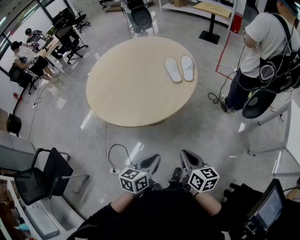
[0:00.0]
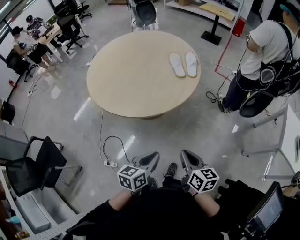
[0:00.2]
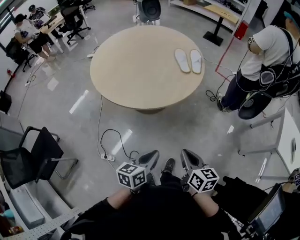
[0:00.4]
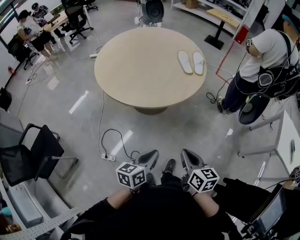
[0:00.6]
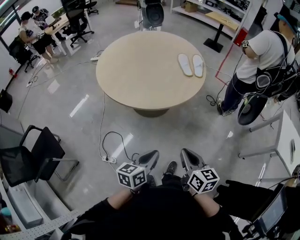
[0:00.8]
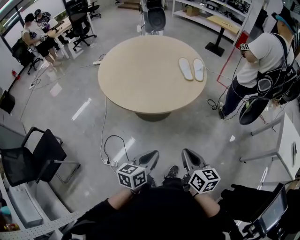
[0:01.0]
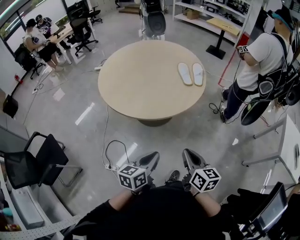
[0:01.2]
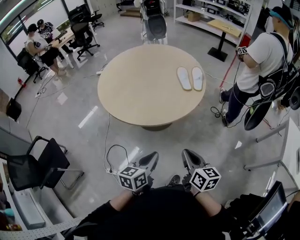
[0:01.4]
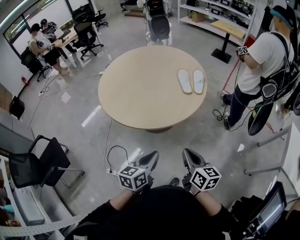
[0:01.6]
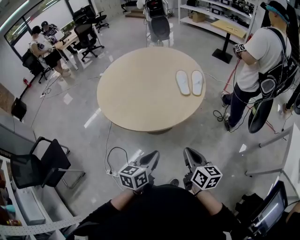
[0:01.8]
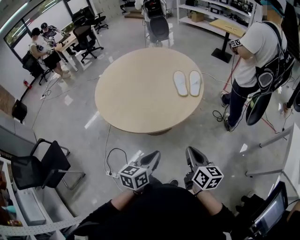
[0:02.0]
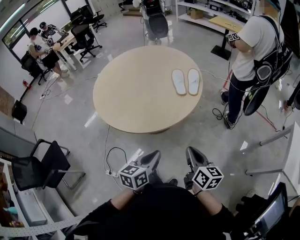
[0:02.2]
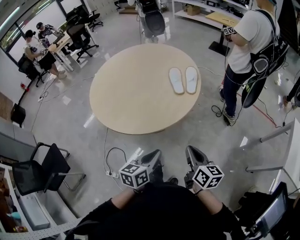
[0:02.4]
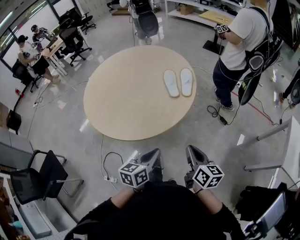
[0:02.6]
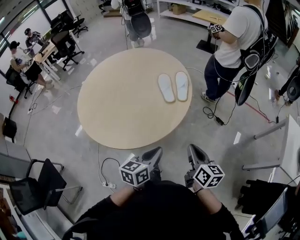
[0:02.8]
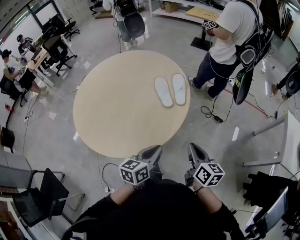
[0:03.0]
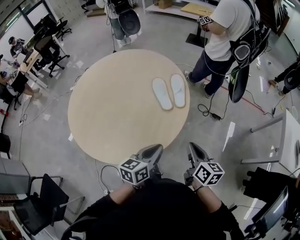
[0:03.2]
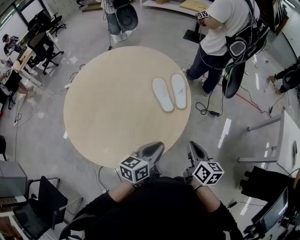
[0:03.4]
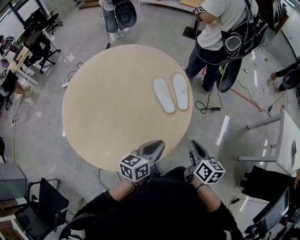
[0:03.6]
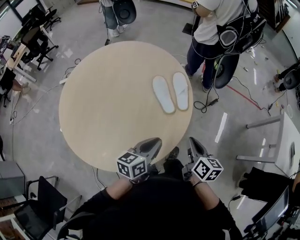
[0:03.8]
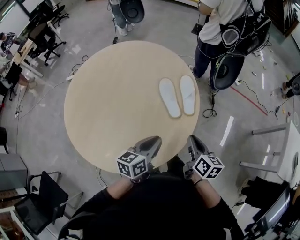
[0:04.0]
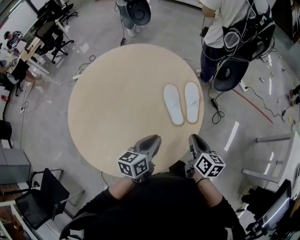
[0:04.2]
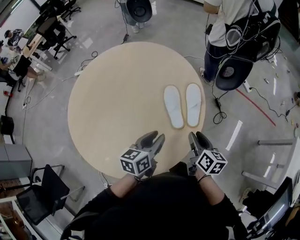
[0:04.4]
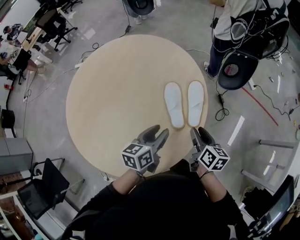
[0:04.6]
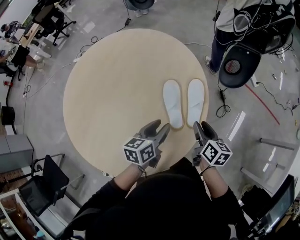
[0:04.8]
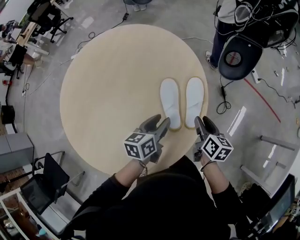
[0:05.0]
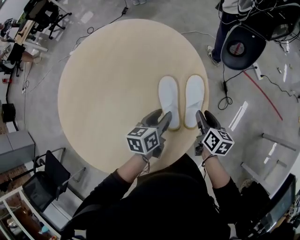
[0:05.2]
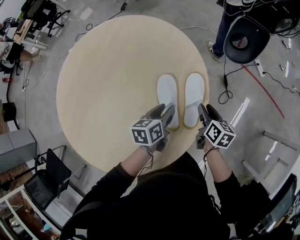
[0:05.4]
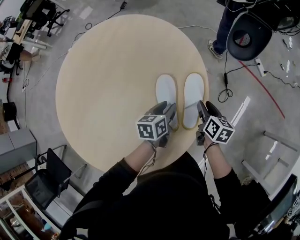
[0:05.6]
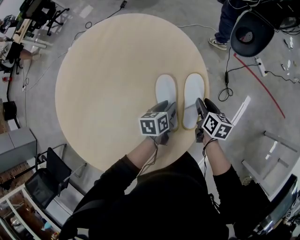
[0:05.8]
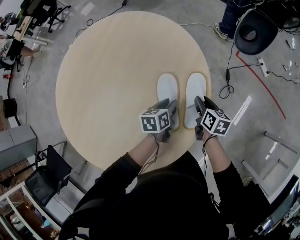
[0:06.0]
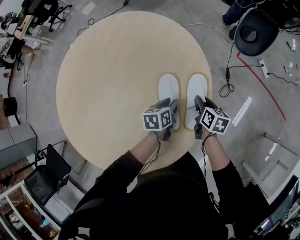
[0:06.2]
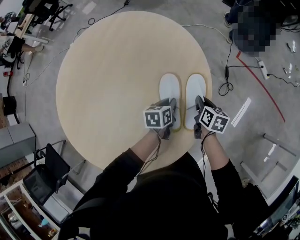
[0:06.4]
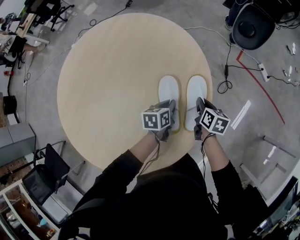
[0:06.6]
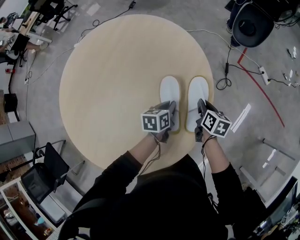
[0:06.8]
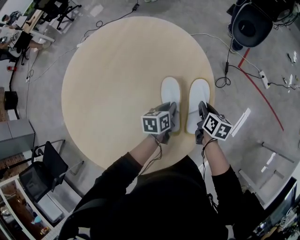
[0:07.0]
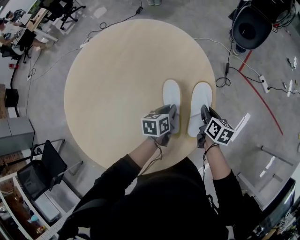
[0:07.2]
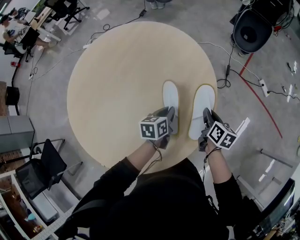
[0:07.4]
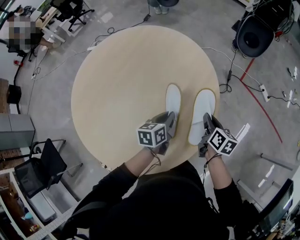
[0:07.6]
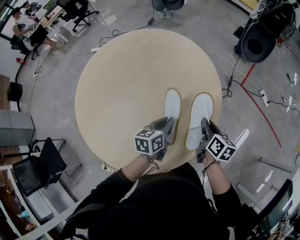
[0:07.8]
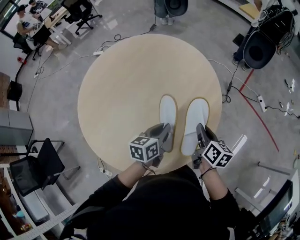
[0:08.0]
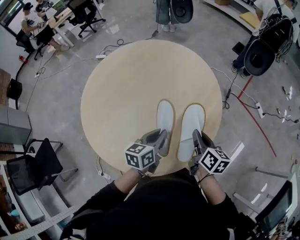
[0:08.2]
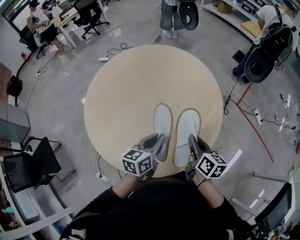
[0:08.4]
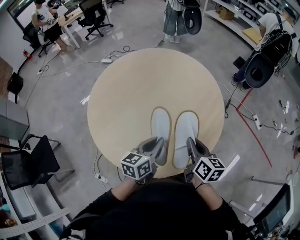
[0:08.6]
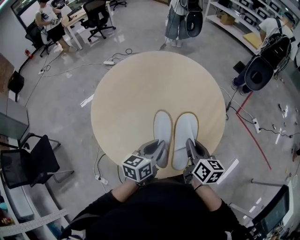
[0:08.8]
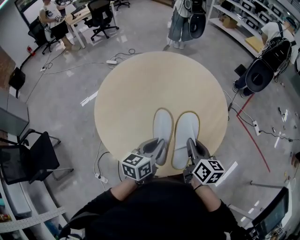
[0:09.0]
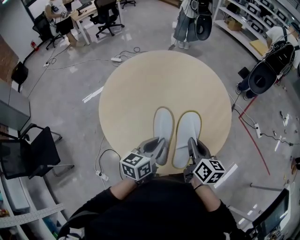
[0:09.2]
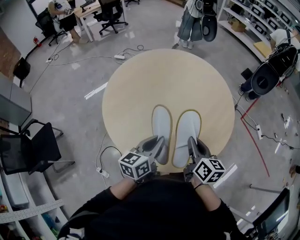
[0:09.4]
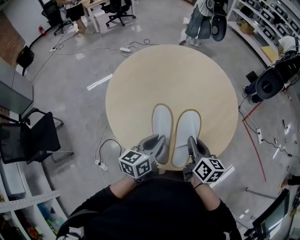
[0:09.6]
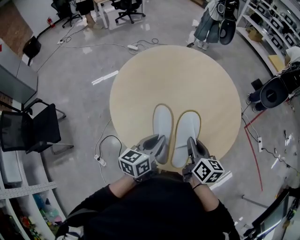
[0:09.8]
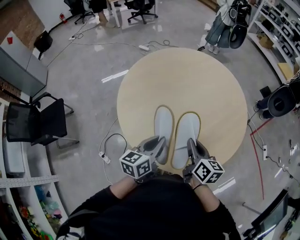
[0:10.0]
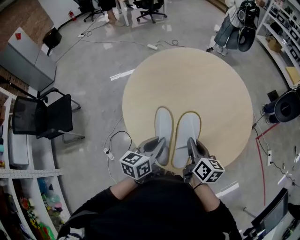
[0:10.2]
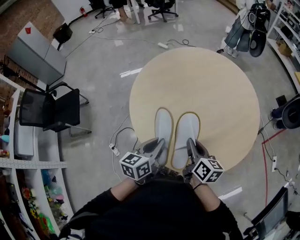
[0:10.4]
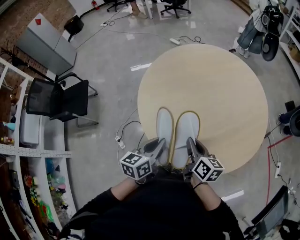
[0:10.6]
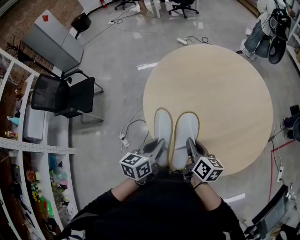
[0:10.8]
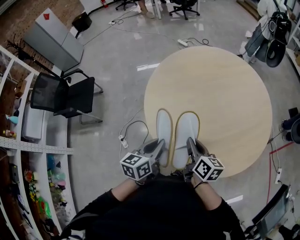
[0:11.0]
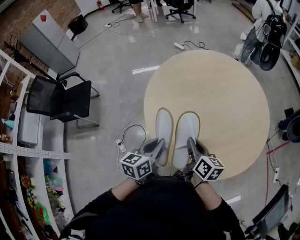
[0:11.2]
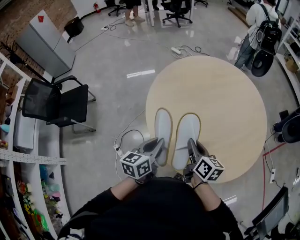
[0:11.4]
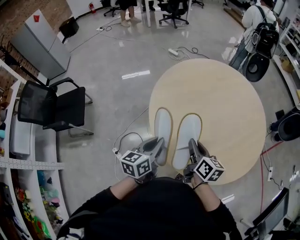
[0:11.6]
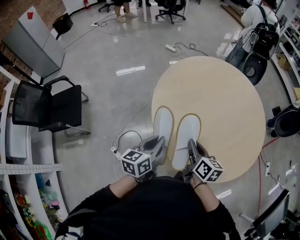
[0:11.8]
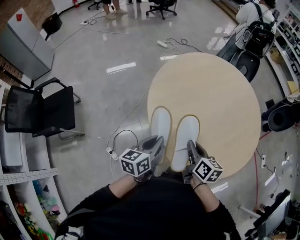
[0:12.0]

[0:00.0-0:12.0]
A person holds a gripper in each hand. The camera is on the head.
0:00.0 to 0:01.6: The right gripper goes backward and returns, approximately 10 cm each way. The left gripper is displaced to the left by approximately 5 cm.
0:01.6 to 0:03.0: The two grippers go some 25 cm forward.
0:03.0 to 0:04.4: Both grippers move forward, approximately 25 cm. The left gripper opens up; the right gripper opens.
0:04.4 to 0:06.0: Both grippers travel together forward and downward, about 30 cm. The left gripper rotates about 20 degrees.
0:06.0 to 0:07.6: The left gripper travels upward, backward and to the left by approximately 15 cm, and closes. The right gripper is displaced upward and backward by roughly 15 cm, and closes.
0:07.6 to 0:09.0: The left gripper heads backward, to the left and upward, covering some 30 cm. Meanwhile the right gripper is displaced to the left, backward and upward by approximately 35 cm, and changes its angle by roughly 20 degrees.
0:09.0 to 0:10.4: The right gripper moves some 10 cm, and swivels some 20 degrees. The left gripper shifts by some 10 cm, and turns by some 30 degrees.
0:10.4 to 0:12.0: The grippers both shift to the left by roughly 20 cm.

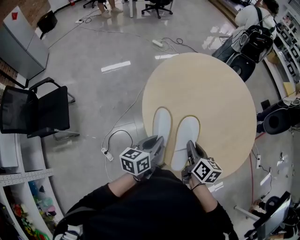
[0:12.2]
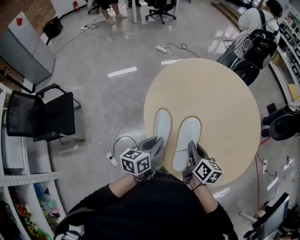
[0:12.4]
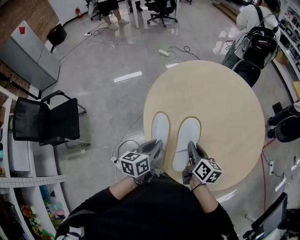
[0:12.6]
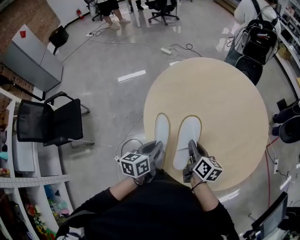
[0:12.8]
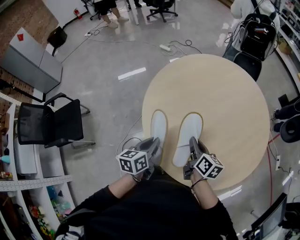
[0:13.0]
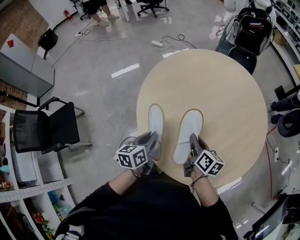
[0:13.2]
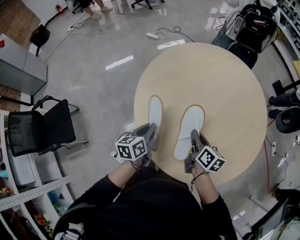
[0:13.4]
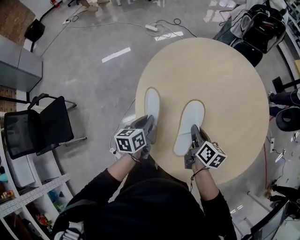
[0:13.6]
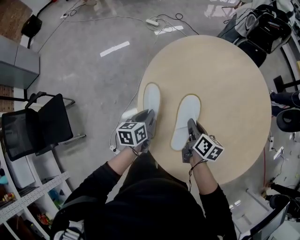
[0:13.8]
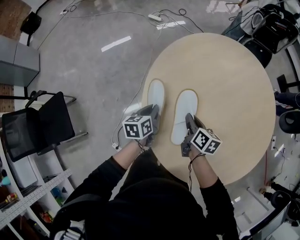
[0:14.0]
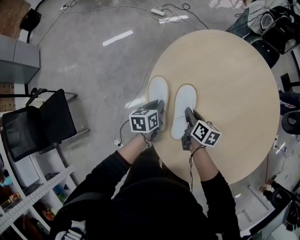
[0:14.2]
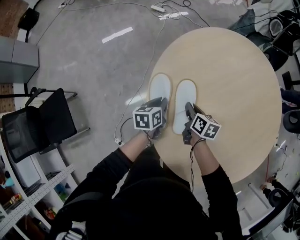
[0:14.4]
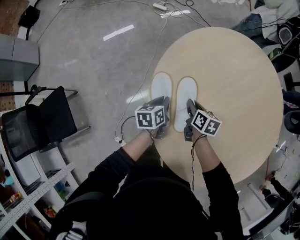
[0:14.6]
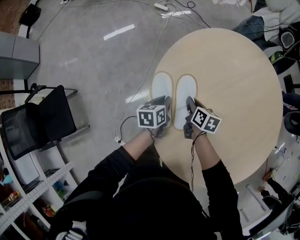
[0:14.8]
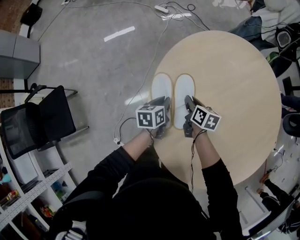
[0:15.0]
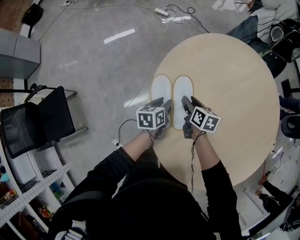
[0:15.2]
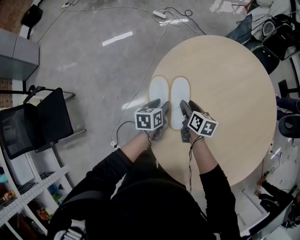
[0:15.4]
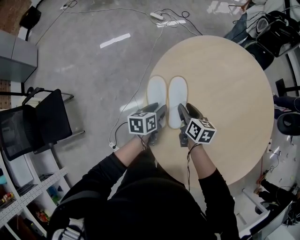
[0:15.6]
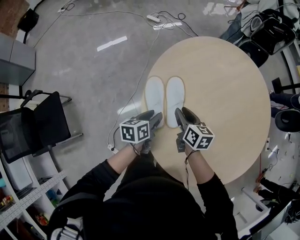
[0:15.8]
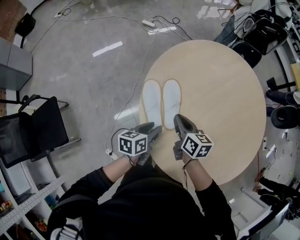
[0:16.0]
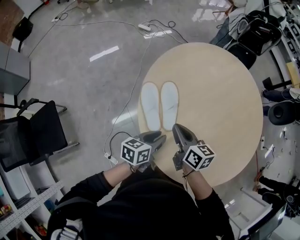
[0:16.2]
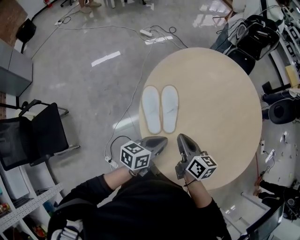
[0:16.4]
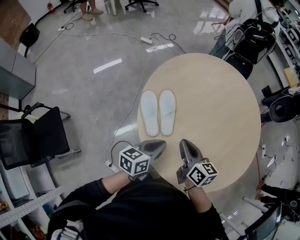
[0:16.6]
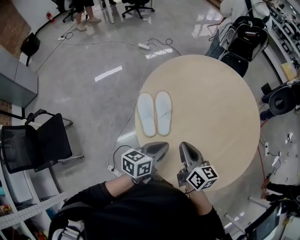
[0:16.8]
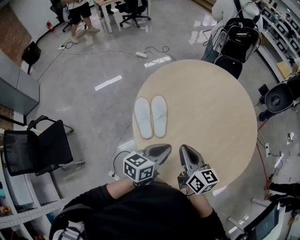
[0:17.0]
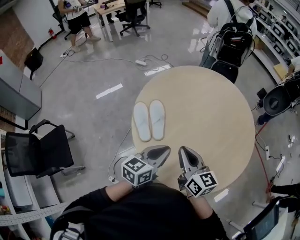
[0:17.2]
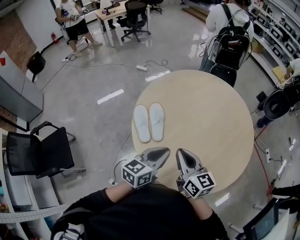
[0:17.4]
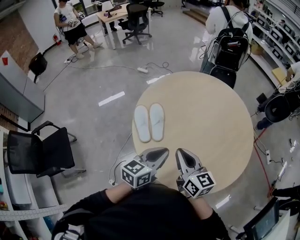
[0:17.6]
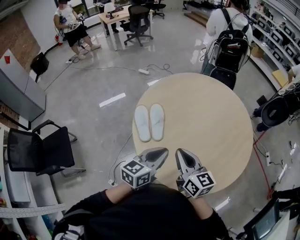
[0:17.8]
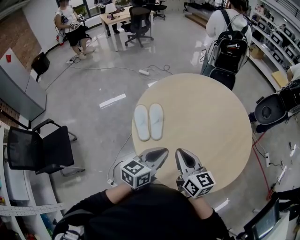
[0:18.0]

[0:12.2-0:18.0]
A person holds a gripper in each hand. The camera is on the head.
0:12.2 to 0:13.6: Both grippers travel together forward and downward, approximately 20 cm.
0:13.6 to 0:15.0: The left gripper shifts some 20 cm forward and downward. The right gripper heads forward, downward and to the left, covering some 25 cm.
0:15.0 to 0:16.6: The left gripper shifts about 25 cm backward, upward and to the right, swivels about 30 degrees, and opens, then closes again, while the right gripper travels upward and backward by some 30 cm, changes its angle by roughly 20 degrees, and opens, then closes once more.
0:16.6 to 0:18.0: The right gripper shifts about 20 cm backward, upward and to the right, and swivels approximately 20 degrees, while the left gripper heads upward, to the right and backward, covering about 20 cm, and turns by about 20 degrees.

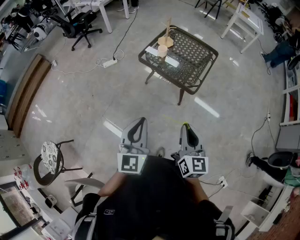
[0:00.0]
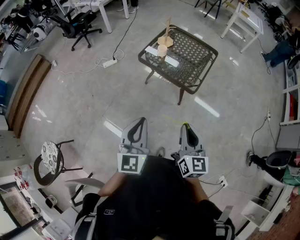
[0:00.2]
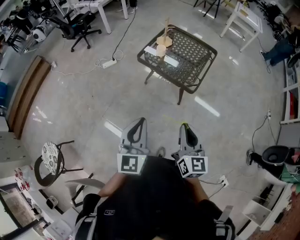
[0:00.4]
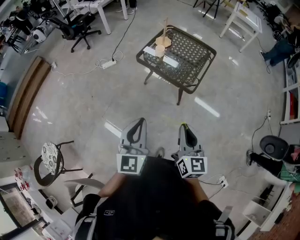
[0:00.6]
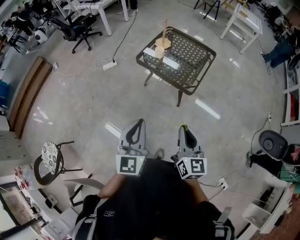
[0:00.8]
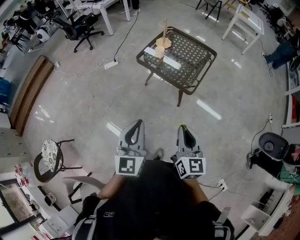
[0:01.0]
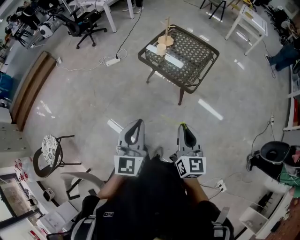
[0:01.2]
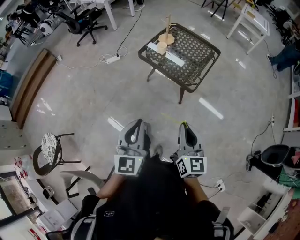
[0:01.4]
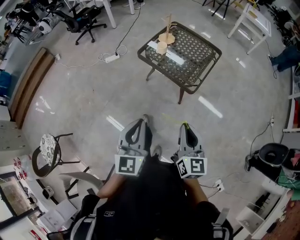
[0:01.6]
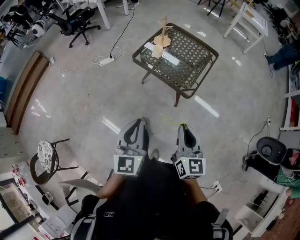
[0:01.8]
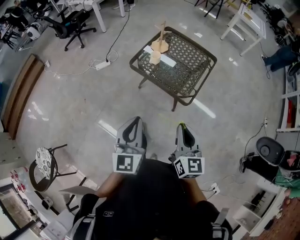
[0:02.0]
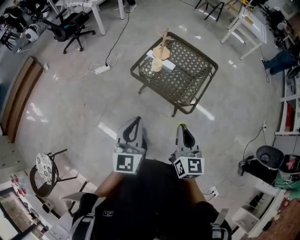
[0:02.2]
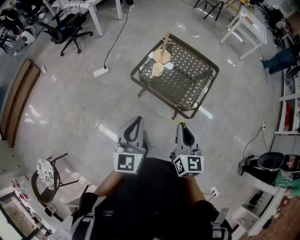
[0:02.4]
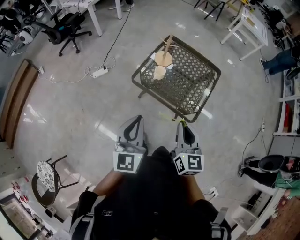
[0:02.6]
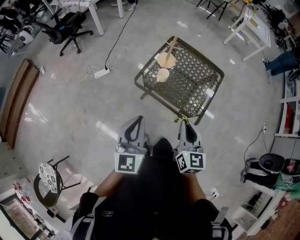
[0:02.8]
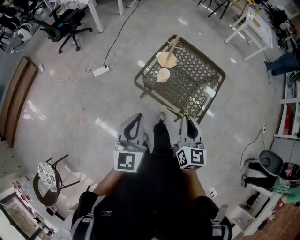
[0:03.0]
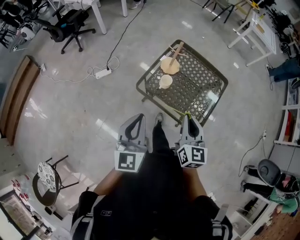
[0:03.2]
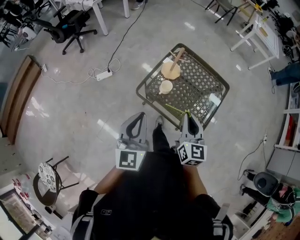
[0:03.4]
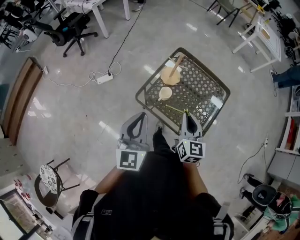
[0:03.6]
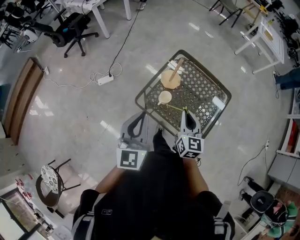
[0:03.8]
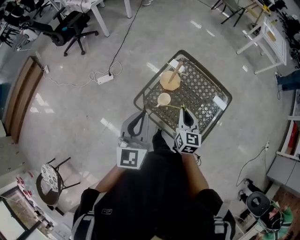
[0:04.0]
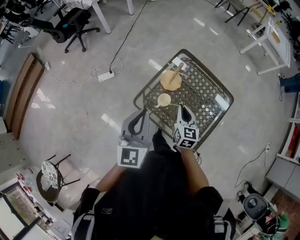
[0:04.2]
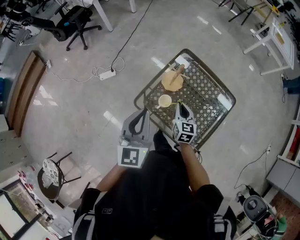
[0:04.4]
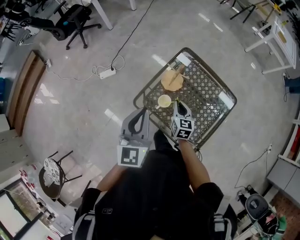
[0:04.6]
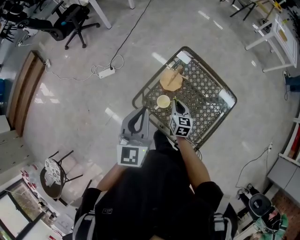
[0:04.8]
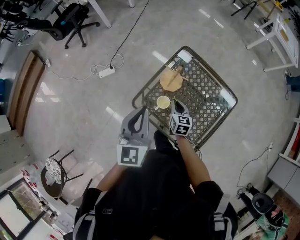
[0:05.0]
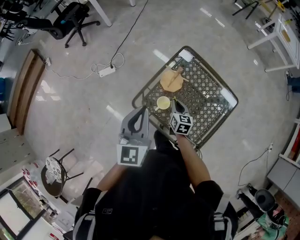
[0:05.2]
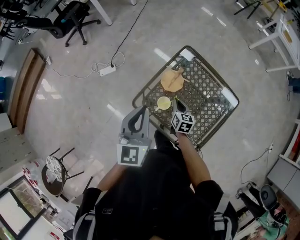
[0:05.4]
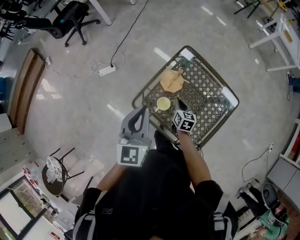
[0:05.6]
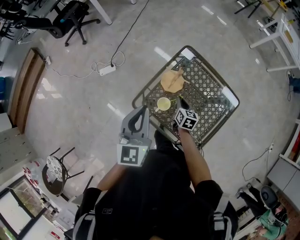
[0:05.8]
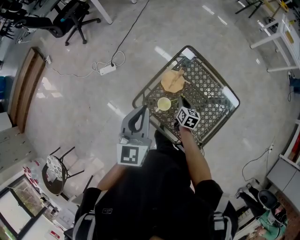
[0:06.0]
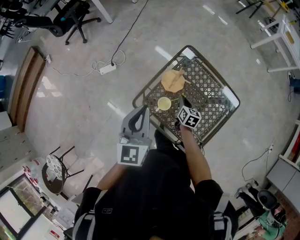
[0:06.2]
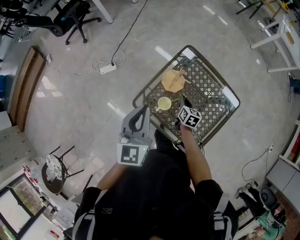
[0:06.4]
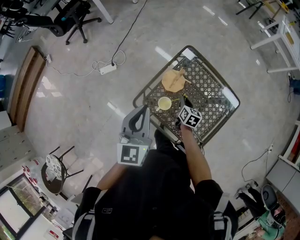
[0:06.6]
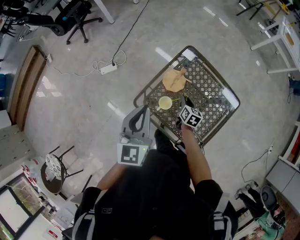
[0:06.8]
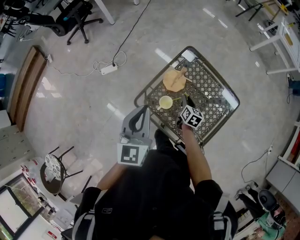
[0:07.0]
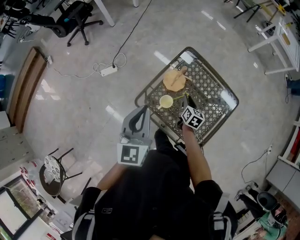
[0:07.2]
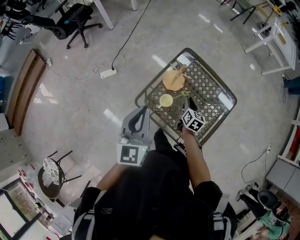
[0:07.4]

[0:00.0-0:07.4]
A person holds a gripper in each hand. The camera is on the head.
0:00.0 to 0:01.4: The grippers both shift to the right by some 5 cm.
0:01.4 to 0:03.0: Both grippers are carried forward, about 40 cm.
0:03.0 to 0:04.4: The right gripper travels forward and downward by some 35 cm. Meanwhile the left gripper heads forward, covering roughly 25 cm.
0:04.4 to 0:06.0: The left gripper travels forward by some 5 cm. The right gripper shifts about 15 cm downward and forward, and rotates about 20 degrees.
0:06.0 to 0:07.4: The left gripper moves backward, approximately 5 cm; the right gripper is displaced upward by about 5 cm.
